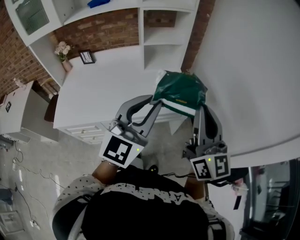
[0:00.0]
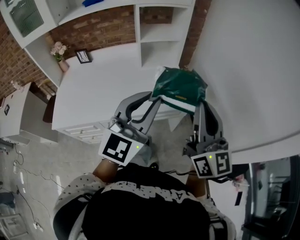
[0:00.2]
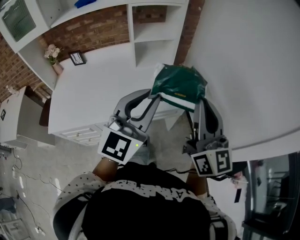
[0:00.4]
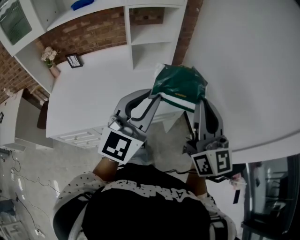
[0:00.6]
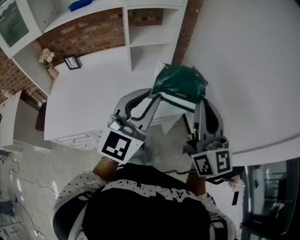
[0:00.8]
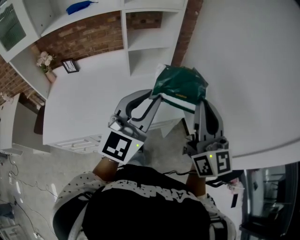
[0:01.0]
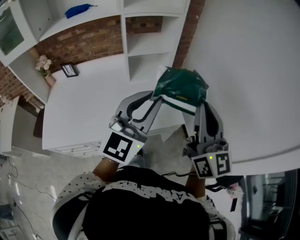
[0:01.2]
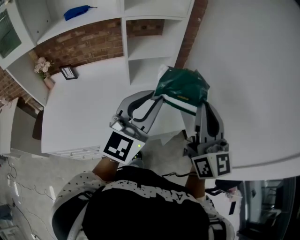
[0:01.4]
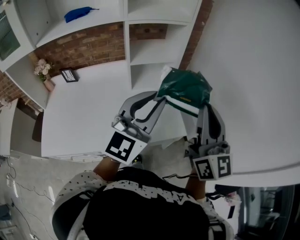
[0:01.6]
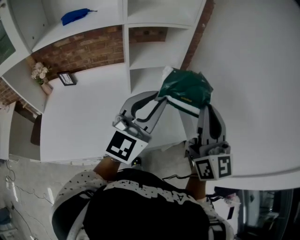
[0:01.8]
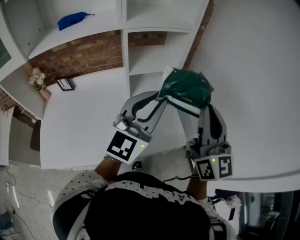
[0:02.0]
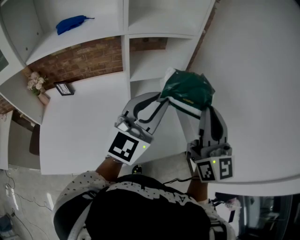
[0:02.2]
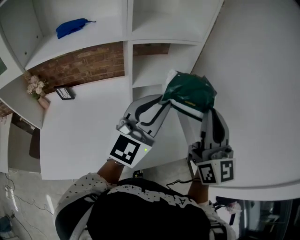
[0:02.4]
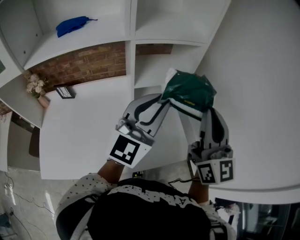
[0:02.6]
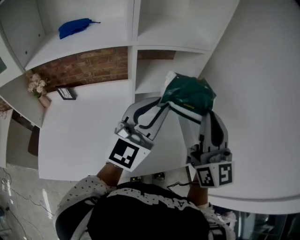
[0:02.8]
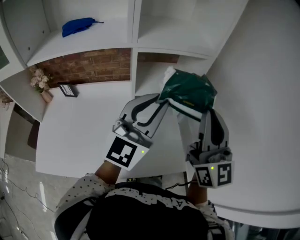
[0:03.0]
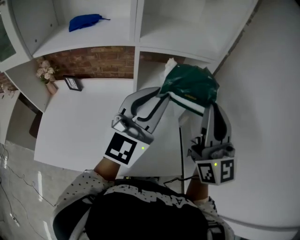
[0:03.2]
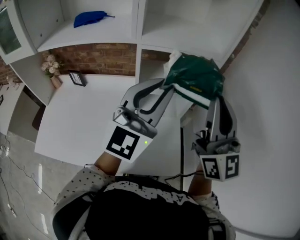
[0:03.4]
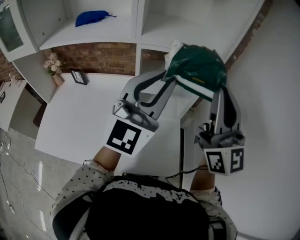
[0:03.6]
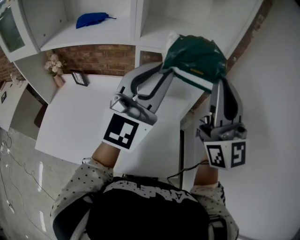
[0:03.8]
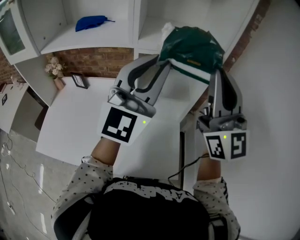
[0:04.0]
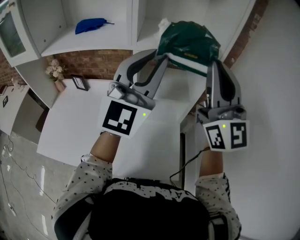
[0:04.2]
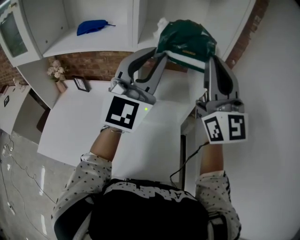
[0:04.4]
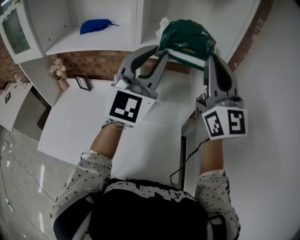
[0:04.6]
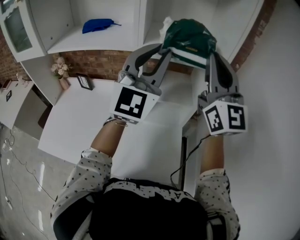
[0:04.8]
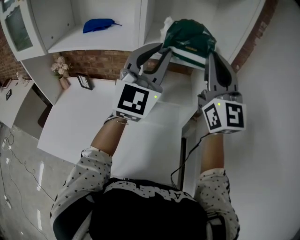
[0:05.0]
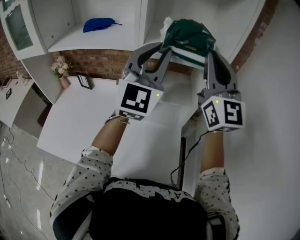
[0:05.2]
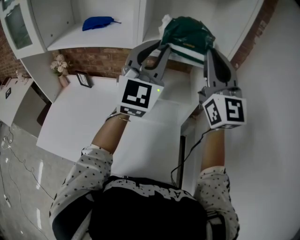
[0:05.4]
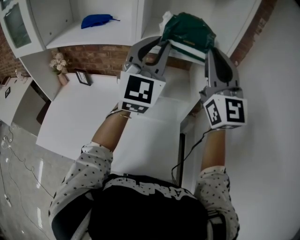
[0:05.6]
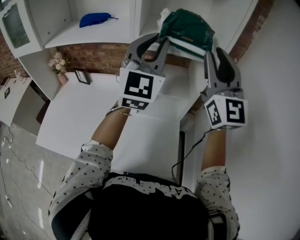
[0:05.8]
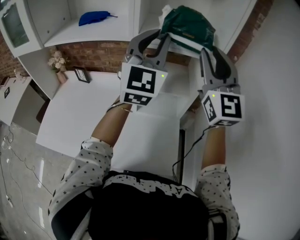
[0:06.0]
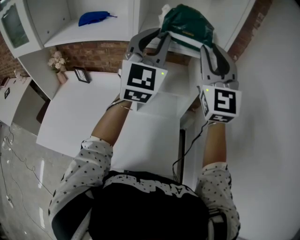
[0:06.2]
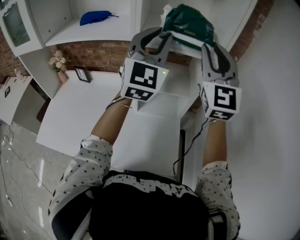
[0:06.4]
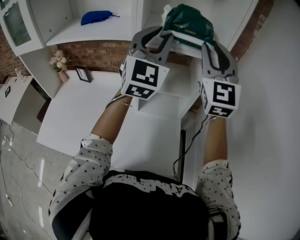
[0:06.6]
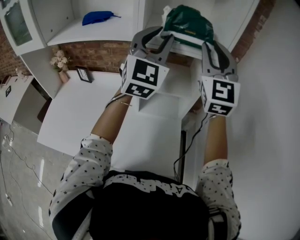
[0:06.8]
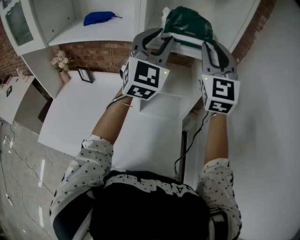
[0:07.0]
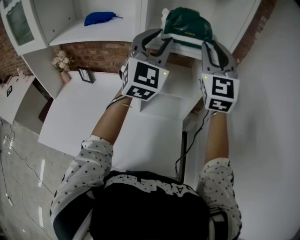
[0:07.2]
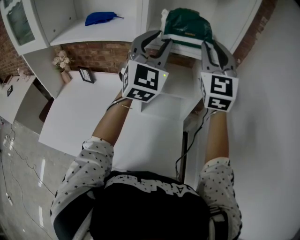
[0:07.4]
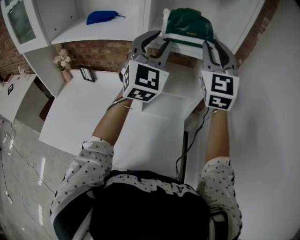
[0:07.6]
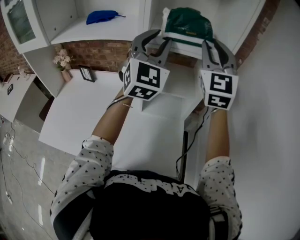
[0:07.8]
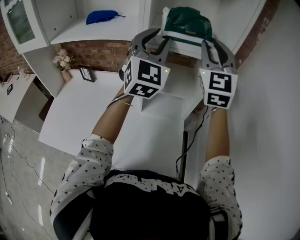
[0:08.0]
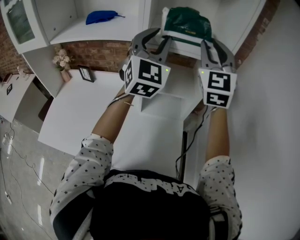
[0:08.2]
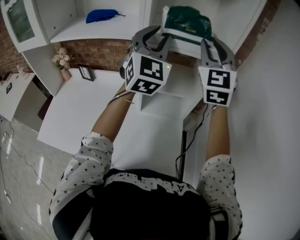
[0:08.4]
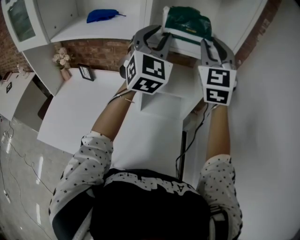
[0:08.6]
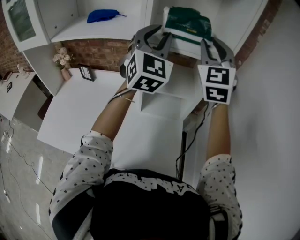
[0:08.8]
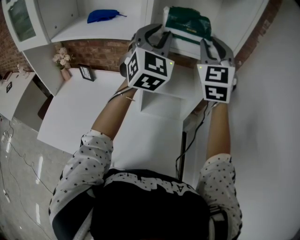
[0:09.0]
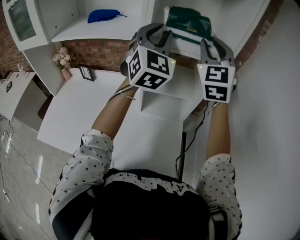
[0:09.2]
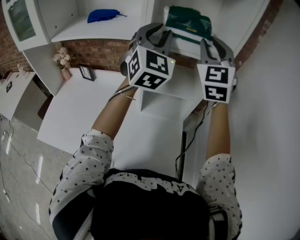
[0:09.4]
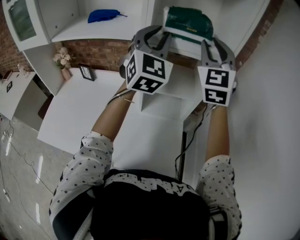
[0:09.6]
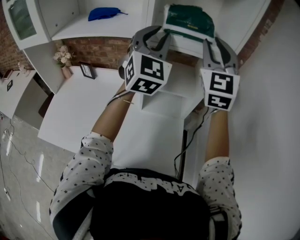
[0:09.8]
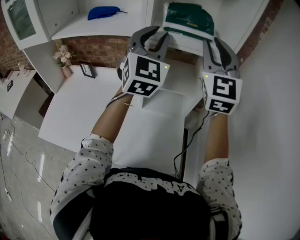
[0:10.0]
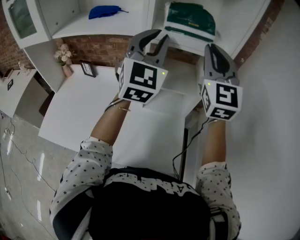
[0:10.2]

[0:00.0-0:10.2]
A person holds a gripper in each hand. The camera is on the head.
0:00.0 to 0:01.4: The grippers both shift forward by about 15 cm.
0:01.4 to 0:03.0: Both grippers travel together forward and to the left, about 15 cm.
0:03.0 to 0:04.4: The left gripper moves upward and forward, some 15 cm, and swivels approximately 30 degrees. The right gripper shifts about 15 cm forward and upward, and changes its angle by roughly 20 degrees.
0:04.4 to 0:05.8: The left gripper shifts about 5 cm forward.
0:05.8 to 0:07.2: The right gripper travels forward by about 5 cm.
0:07.2 to 0:10.2: There are only small adjustments of the grippers.

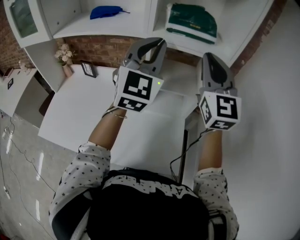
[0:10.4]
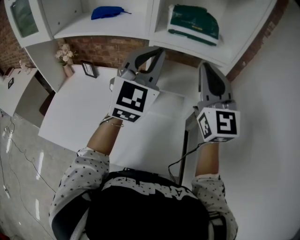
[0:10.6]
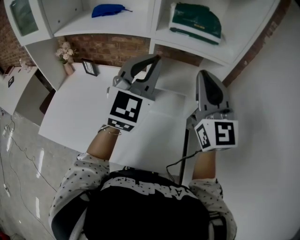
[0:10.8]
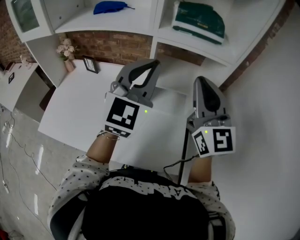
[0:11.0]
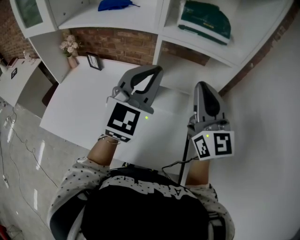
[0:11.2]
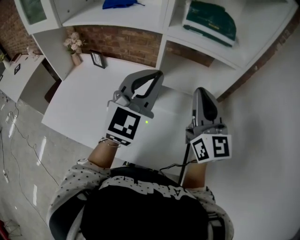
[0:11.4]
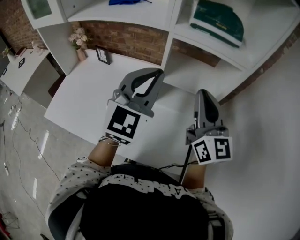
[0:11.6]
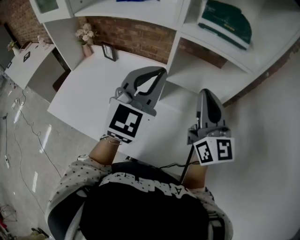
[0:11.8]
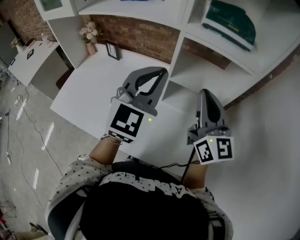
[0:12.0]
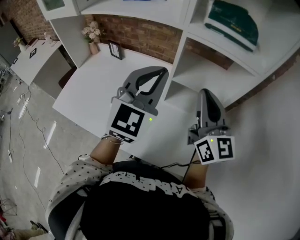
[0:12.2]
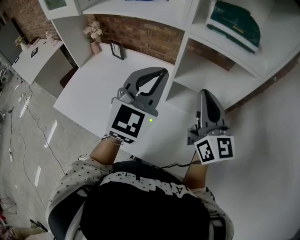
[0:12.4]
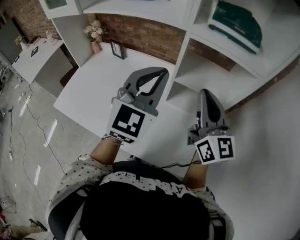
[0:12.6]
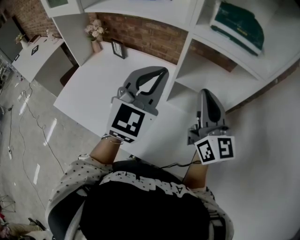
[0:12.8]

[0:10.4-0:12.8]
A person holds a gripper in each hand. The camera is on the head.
0:10.4 to 0:11.6: Both grippers move downward and backward, about 10 cm. The right gripper rotates about 30 degrees.
0:11.6 to 0:12.8: The grippers move only a little.

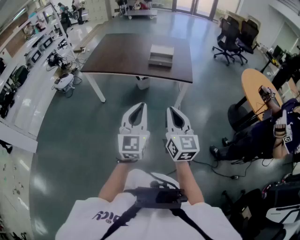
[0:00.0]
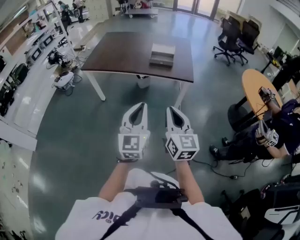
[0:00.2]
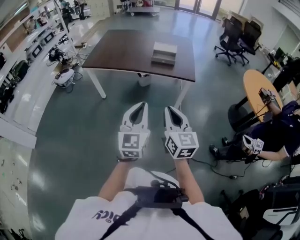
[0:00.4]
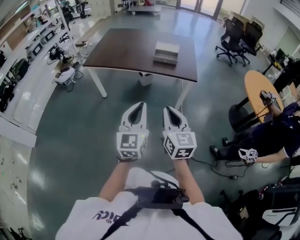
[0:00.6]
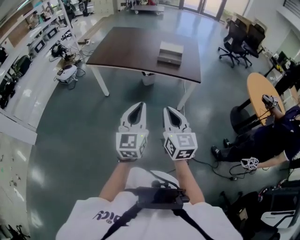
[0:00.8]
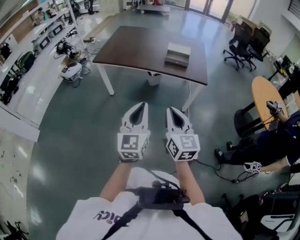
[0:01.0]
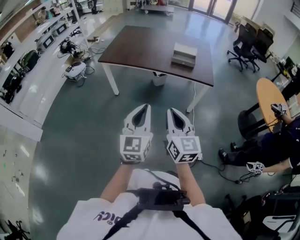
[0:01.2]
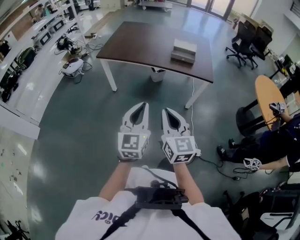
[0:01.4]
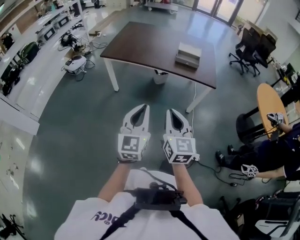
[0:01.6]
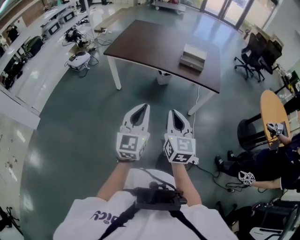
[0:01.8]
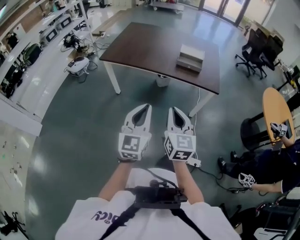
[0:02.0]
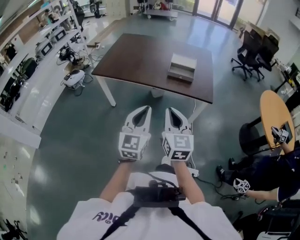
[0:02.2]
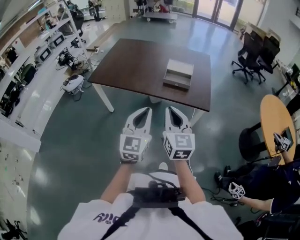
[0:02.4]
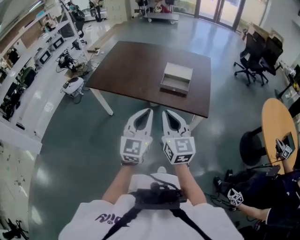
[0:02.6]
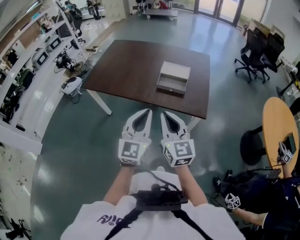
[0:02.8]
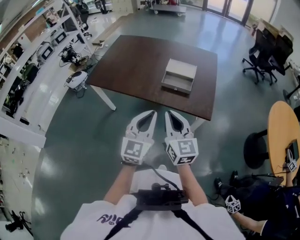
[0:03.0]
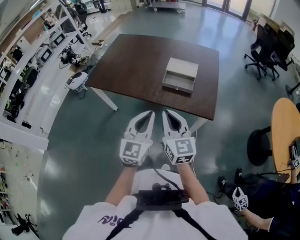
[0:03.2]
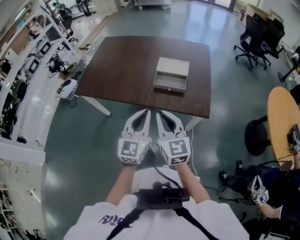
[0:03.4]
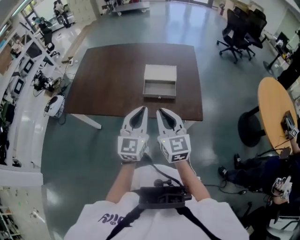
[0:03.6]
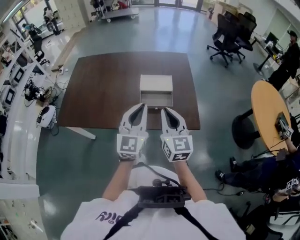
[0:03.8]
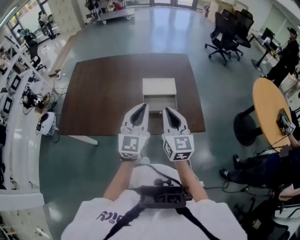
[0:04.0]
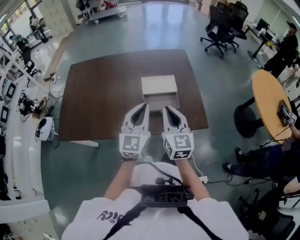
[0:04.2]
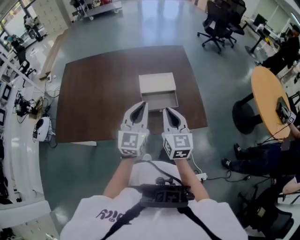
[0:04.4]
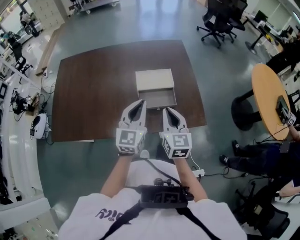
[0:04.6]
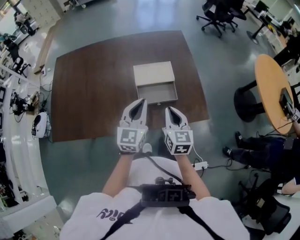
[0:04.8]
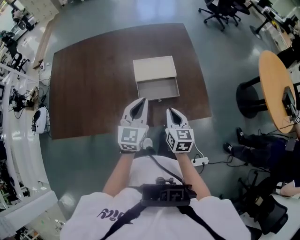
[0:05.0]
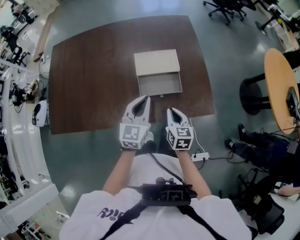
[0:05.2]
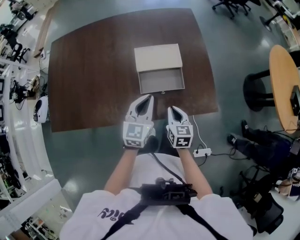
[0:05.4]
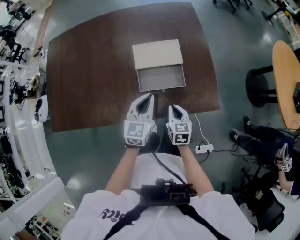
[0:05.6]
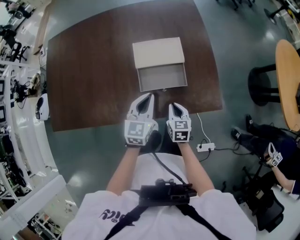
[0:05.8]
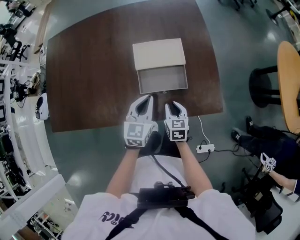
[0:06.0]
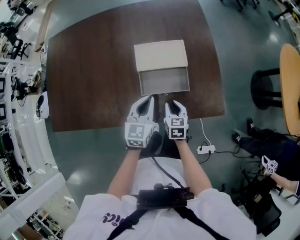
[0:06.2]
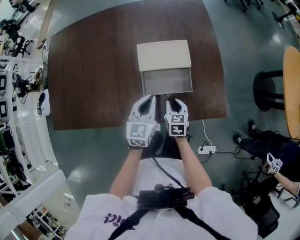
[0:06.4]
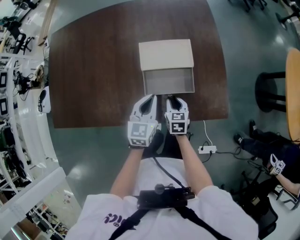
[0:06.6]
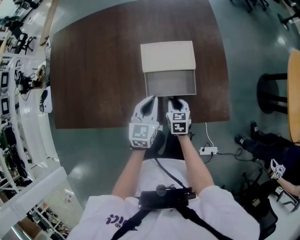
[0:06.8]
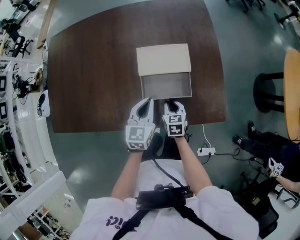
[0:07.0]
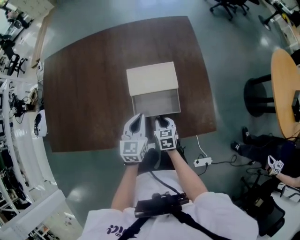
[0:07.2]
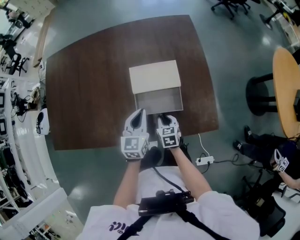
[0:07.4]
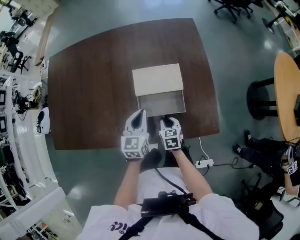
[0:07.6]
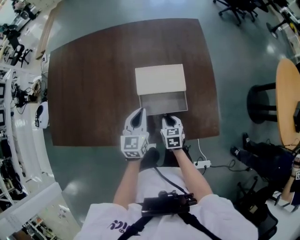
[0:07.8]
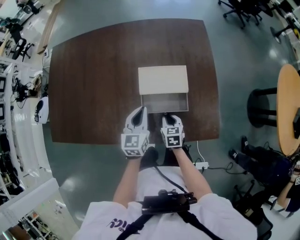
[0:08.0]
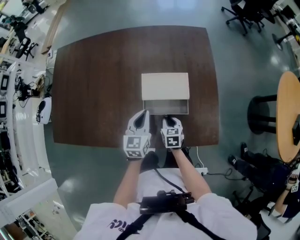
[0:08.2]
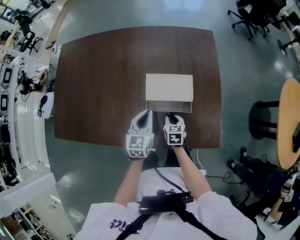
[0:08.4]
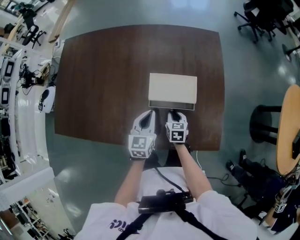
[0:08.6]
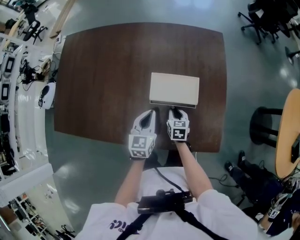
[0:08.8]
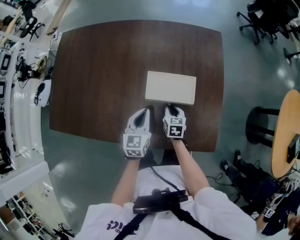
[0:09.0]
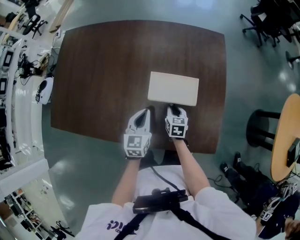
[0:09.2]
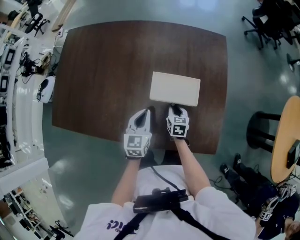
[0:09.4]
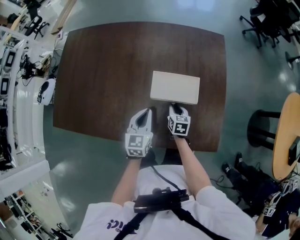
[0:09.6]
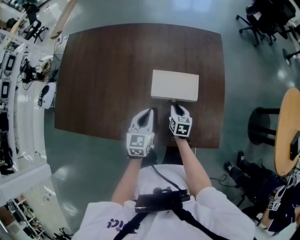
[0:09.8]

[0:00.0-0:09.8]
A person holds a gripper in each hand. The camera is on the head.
0:00.0 to 0:01.4: The two grippers go about 20 cm to the left.
0:01.4 to 0:02.8: The two grippers go approximately 40 cm forward and to the right.
0:02.8 to 0:04.2: The grippers both shift forward by roughly 30 cm. The right gripper turns by some 30 degrees.
0:04.2 to 0:05.6: The right gripper goes roughly 30 cm downward, and tips its fingers downward by approximately 30 degrees, while the left gripper is displaced downward and forward by roughly 25 cm, and swivels roughly 20 degrees.
0:05.6 to 0:07.0: The left gripper goes roughly 5 cm downward, while the right gripper goes some 10 cm forward and downward.
0:07.0 to 0:08.4: The two grippers go roughly 5 cm forward.
0:08.4 to 0:09.8: There are only small adjustments of the grippers.

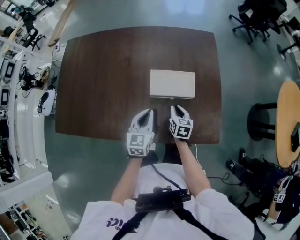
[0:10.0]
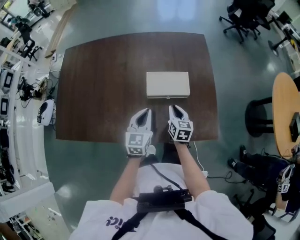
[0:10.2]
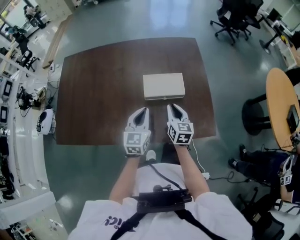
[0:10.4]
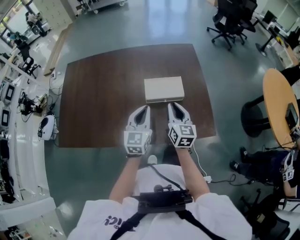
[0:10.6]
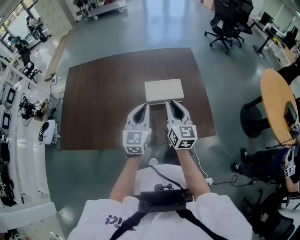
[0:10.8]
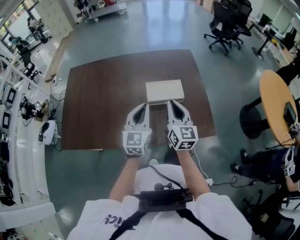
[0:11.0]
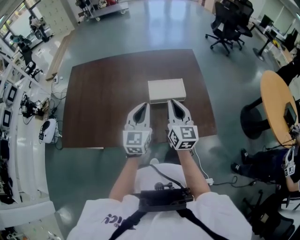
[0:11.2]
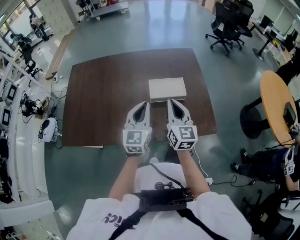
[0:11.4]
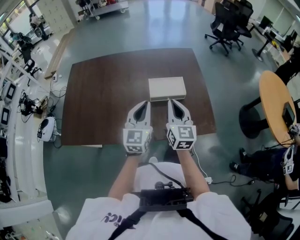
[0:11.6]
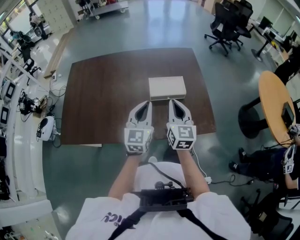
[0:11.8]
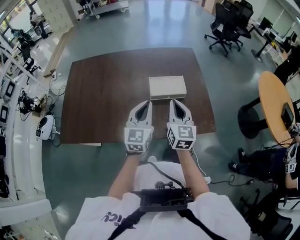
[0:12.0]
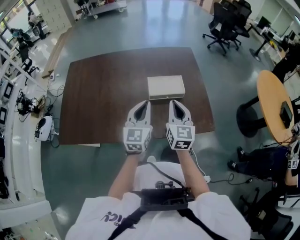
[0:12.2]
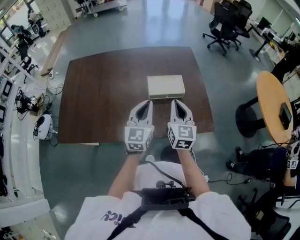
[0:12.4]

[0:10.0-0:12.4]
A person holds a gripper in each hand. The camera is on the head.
0:10.0 to 0:11.2: The right gripper heads upward, covering about 30 cm, and tips its fingers upward by approximately 40 degrees, while the left gripper is displaced upward and backward by some 20 cm, and turns by approximately 20 degrees.
0:11.2 to 0:12.4: The grippers stay close to where they were, moving slightly.
